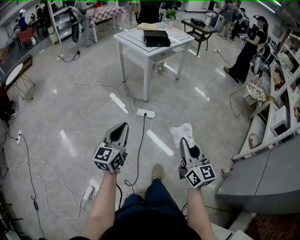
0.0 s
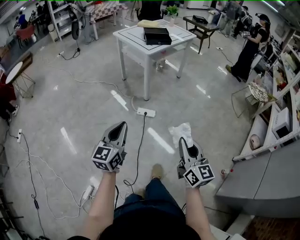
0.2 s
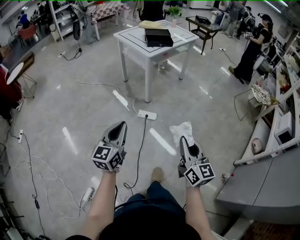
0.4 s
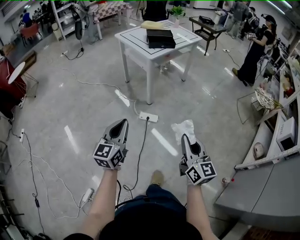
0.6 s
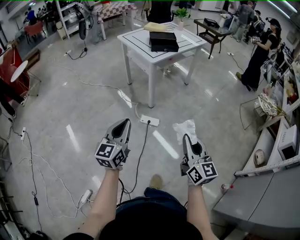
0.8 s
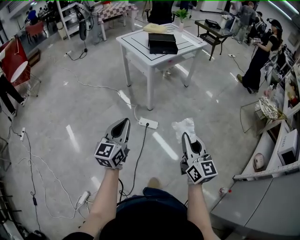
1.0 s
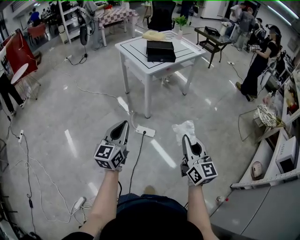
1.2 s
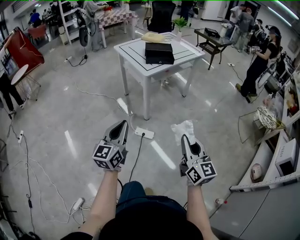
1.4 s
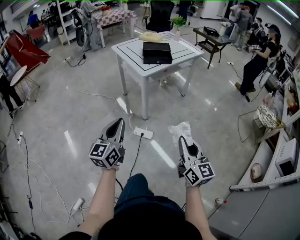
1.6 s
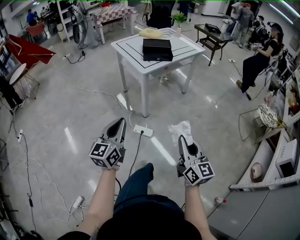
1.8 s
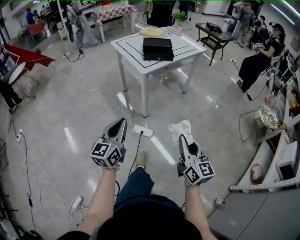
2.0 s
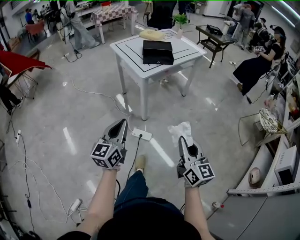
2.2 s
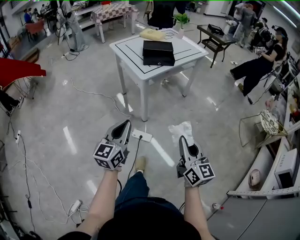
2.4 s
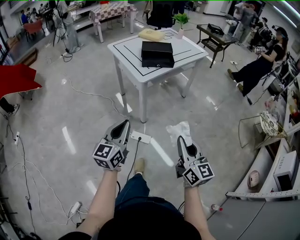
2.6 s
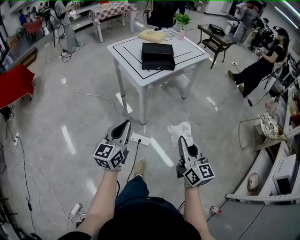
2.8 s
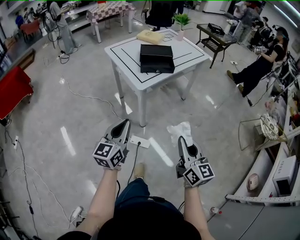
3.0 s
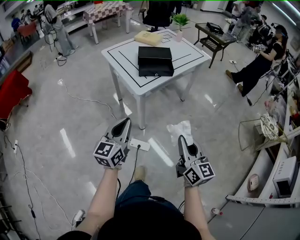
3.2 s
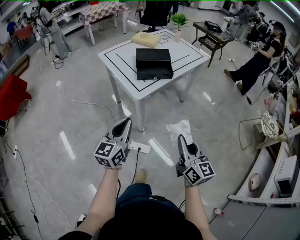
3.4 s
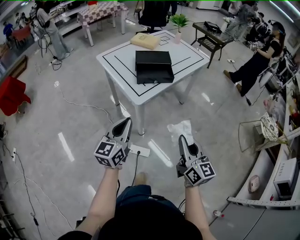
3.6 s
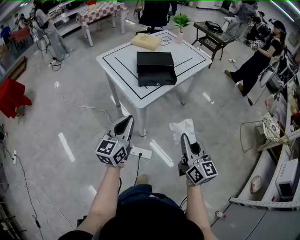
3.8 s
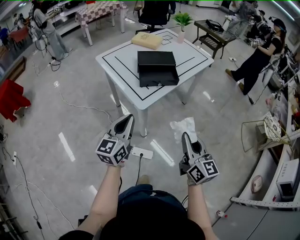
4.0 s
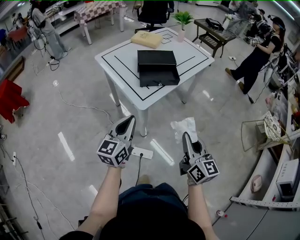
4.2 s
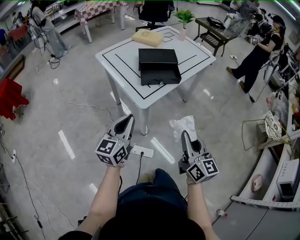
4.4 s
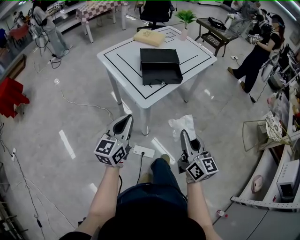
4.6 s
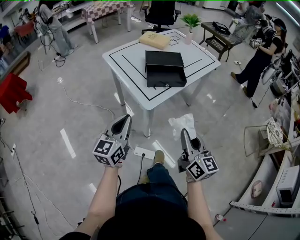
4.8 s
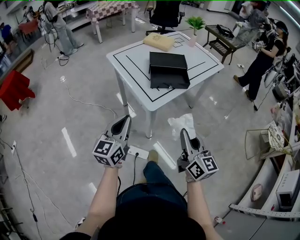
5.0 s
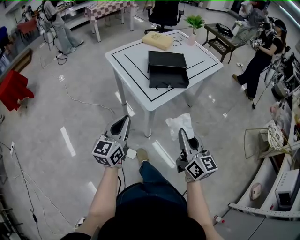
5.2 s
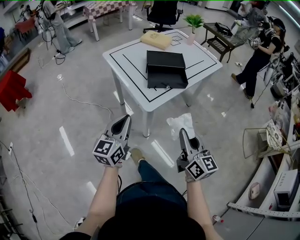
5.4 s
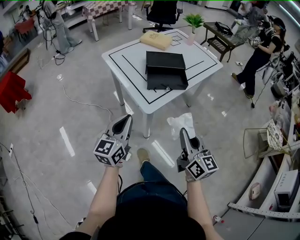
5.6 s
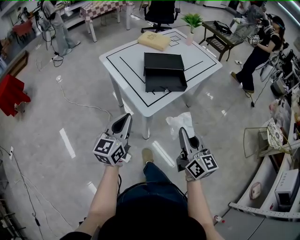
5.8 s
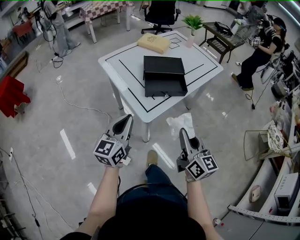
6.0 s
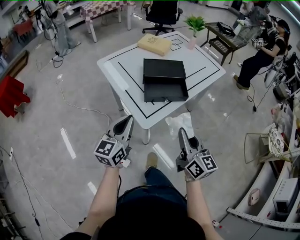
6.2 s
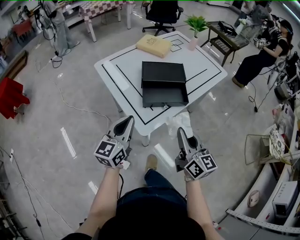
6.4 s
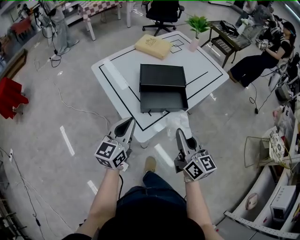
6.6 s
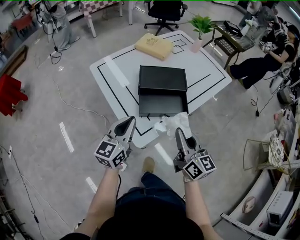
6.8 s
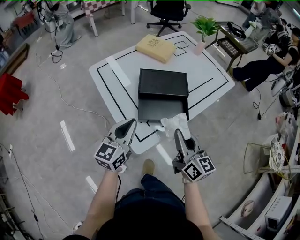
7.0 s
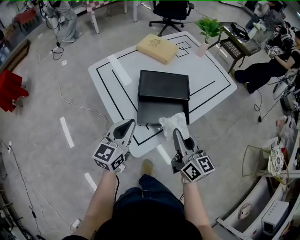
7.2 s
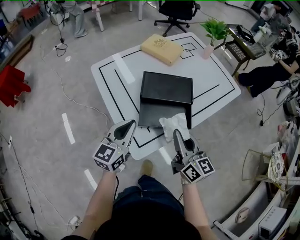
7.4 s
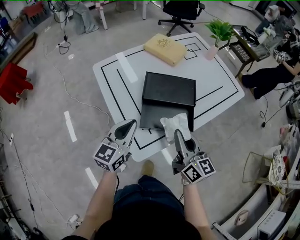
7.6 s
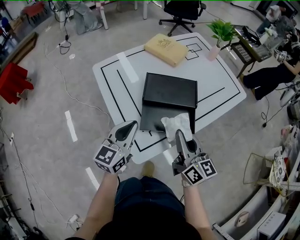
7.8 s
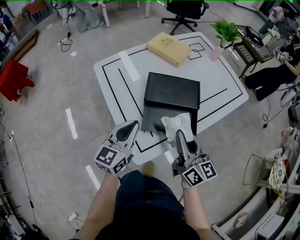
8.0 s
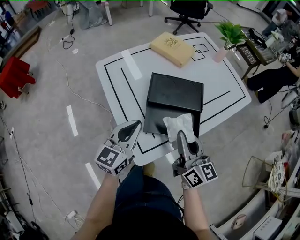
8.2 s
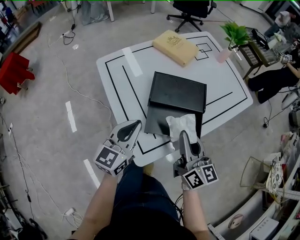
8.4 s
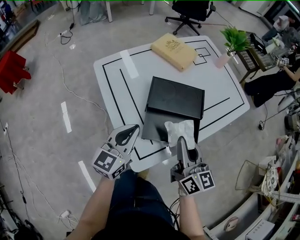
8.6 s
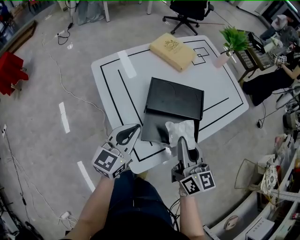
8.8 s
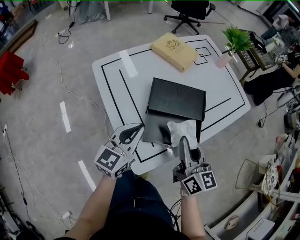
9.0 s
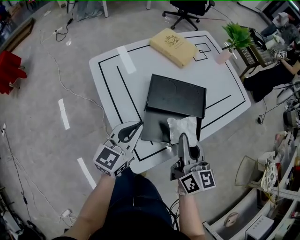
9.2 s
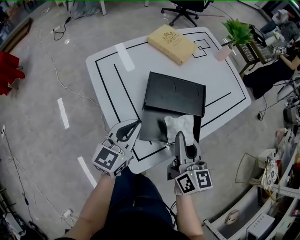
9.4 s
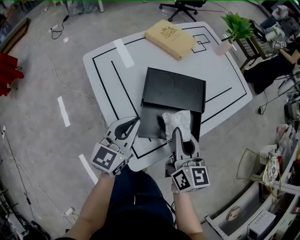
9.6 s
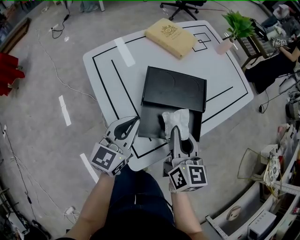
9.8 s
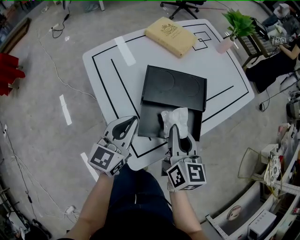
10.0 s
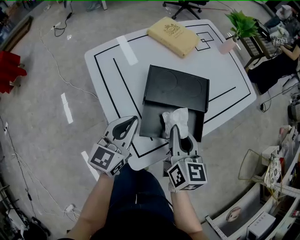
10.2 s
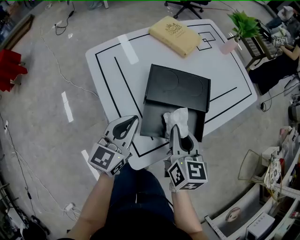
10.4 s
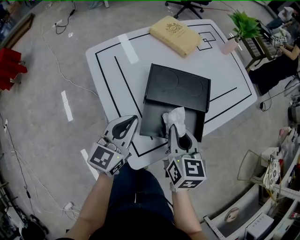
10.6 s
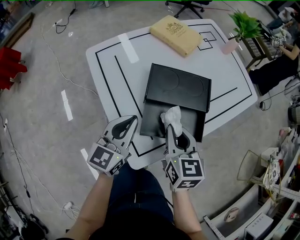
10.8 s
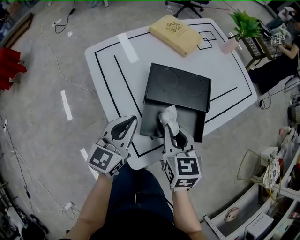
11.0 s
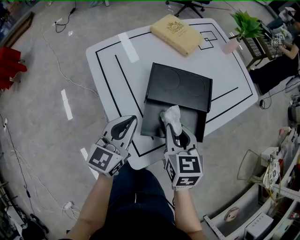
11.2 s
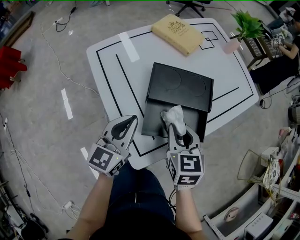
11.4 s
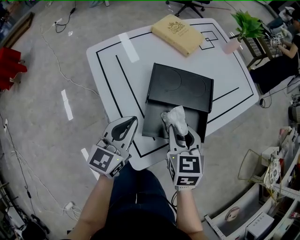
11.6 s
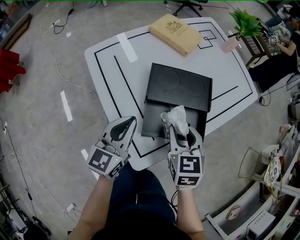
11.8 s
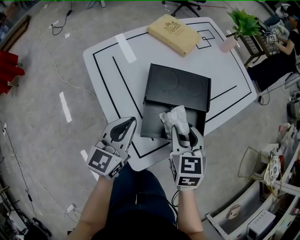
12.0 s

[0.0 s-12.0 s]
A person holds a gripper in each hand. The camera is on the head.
0.0 to 1.6 s: Both grippers travel together forward, about 30 cm.
1.6 to 3.0 s: Both grippers move forward, roughly 20 cm.
3.0 to 4.4 s: Both grippers travel together forward, some 20 cm.
4.4 to 6.0 s: Both grippers travel together forward, about 10 cm.
6.0 to 7.6 s: Both grippers travel together forward, roughly 25 cm.
7.6 to 9.0 s: The right gripper changes place by some 5 cm.
9.0 to 10.4 s: The right gripper is displaced downward by approximately 5 cm.
10.4 to 12.0 s: The right gripper changes its angle by approximately 20 degrees, and opens up.

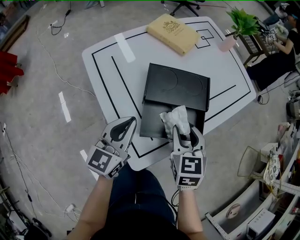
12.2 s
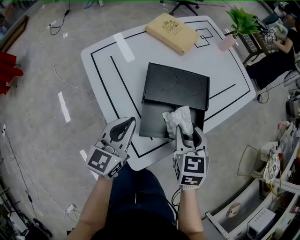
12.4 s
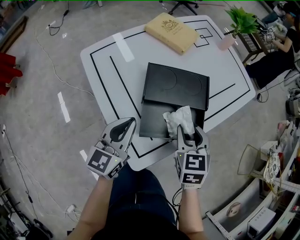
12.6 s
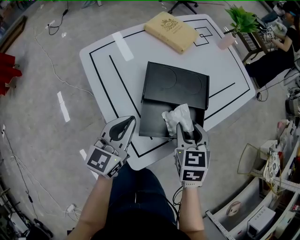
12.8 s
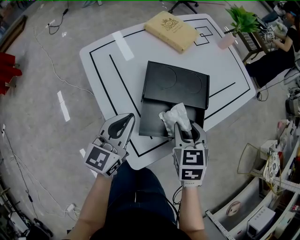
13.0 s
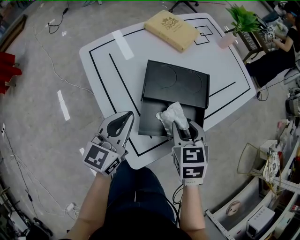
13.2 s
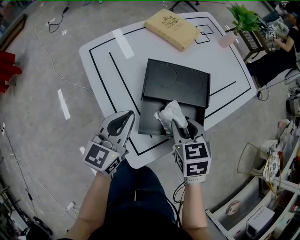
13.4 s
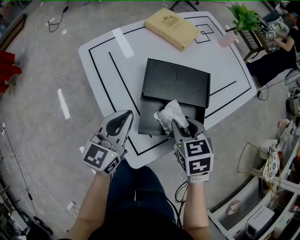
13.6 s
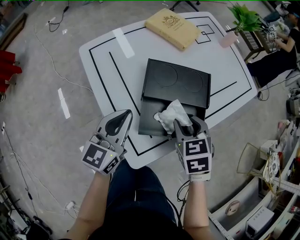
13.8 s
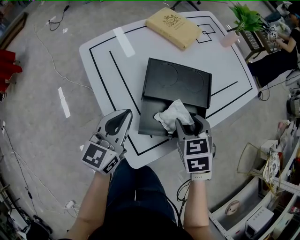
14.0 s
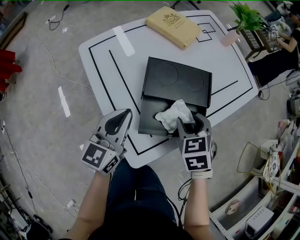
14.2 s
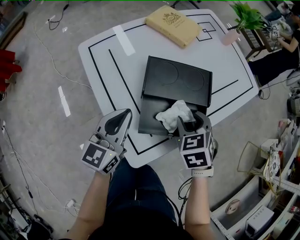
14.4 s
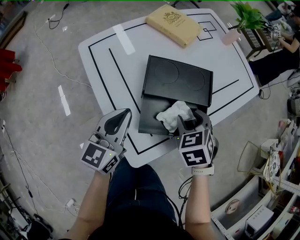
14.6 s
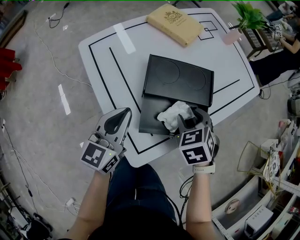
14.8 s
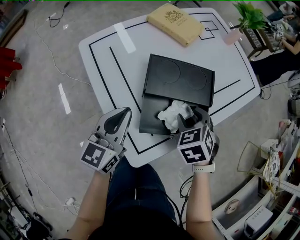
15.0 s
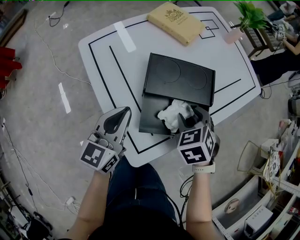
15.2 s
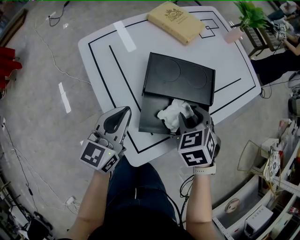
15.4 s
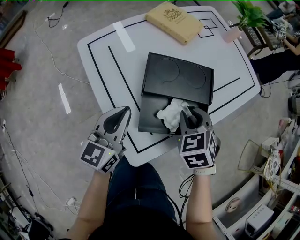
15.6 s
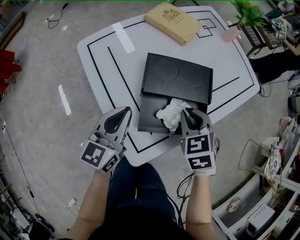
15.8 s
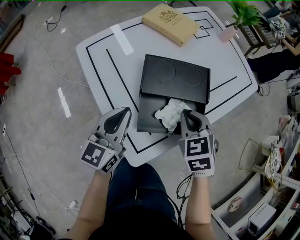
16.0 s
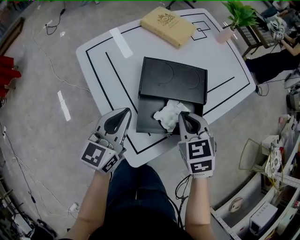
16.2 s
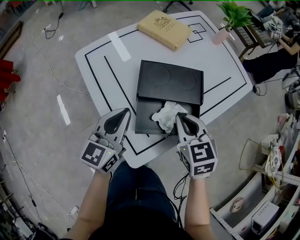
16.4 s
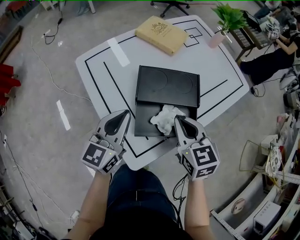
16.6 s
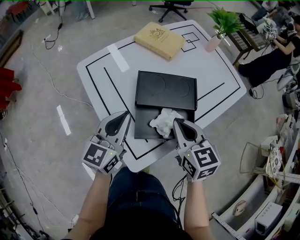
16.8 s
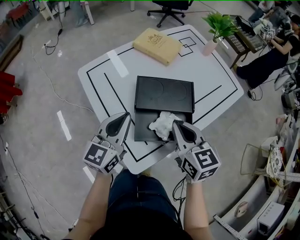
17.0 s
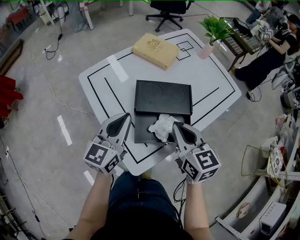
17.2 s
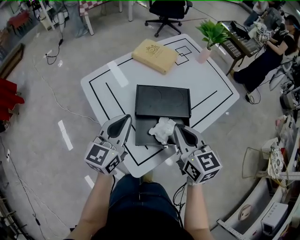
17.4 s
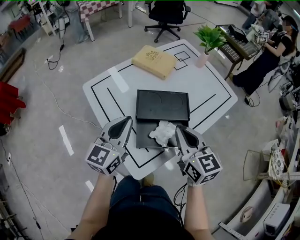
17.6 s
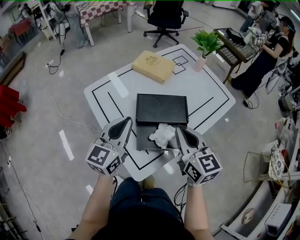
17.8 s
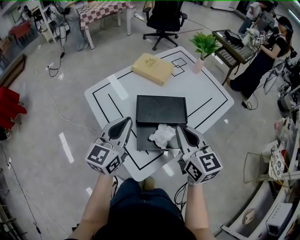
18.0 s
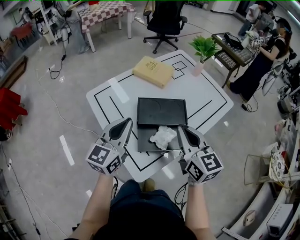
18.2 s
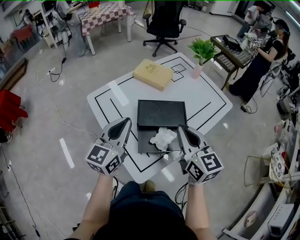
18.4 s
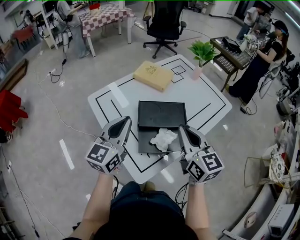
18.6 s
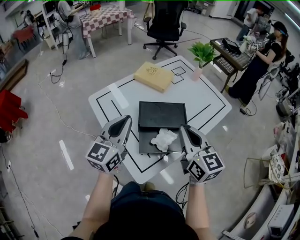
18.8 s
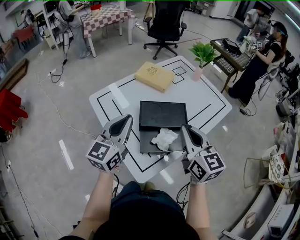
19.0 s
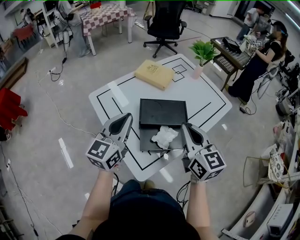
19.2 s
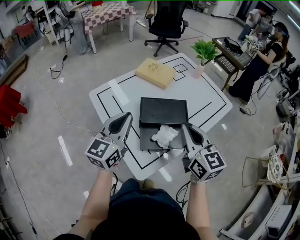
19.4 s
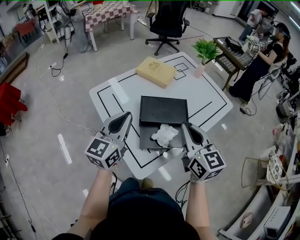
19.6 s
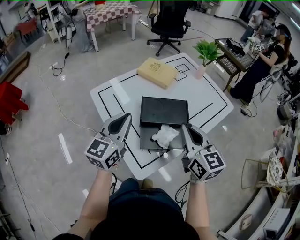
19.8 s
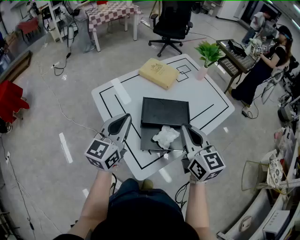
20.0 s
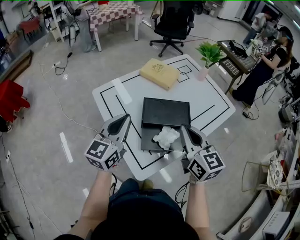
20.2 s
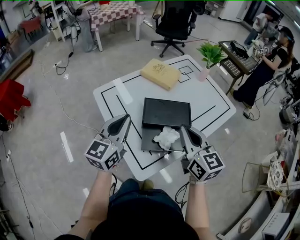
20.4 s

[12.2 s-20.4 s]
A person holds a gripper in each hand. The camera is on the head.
12.2 to 13.8 s: The grippers make only small movements.
13.8 to 15.4 s: The grippers move only a little.
15.4 to 17.2 s: The left gripper moves upward, some 10 cm, while the right gripper heads upward, covering about 15 cm, tilts its fingers roughly 30 degrees upward, and closes up.
17.2 to 18.8 s: The two grippers go some 10 cm upward.
18.8 to 20.4 s: The grippers move only a little.

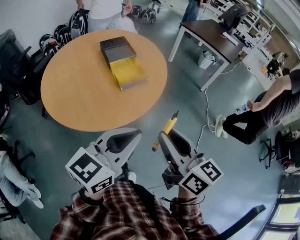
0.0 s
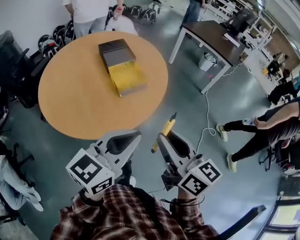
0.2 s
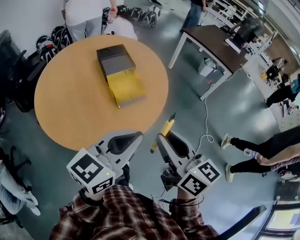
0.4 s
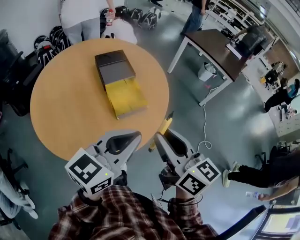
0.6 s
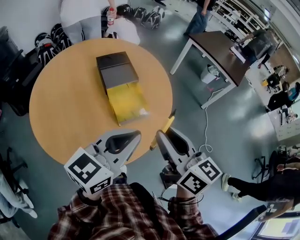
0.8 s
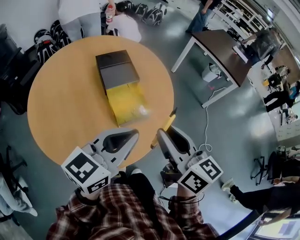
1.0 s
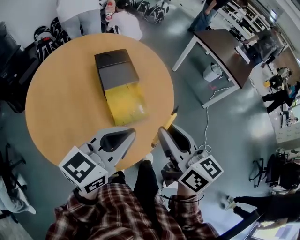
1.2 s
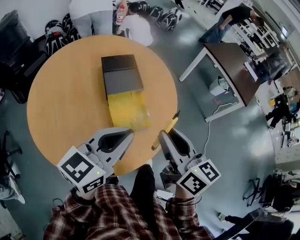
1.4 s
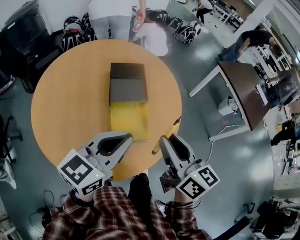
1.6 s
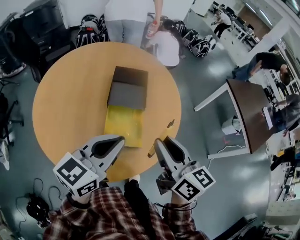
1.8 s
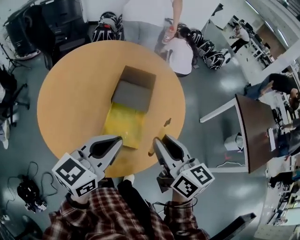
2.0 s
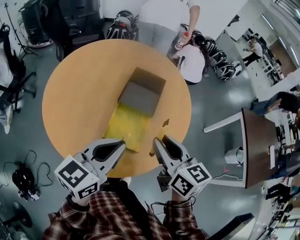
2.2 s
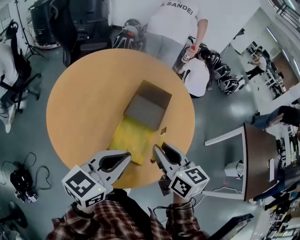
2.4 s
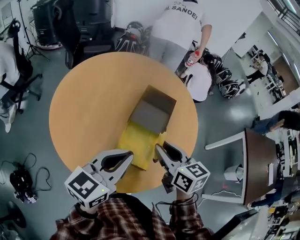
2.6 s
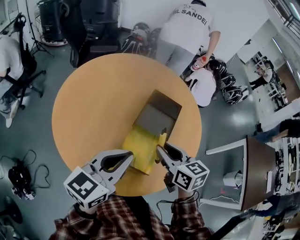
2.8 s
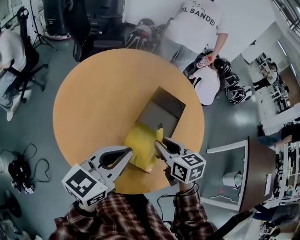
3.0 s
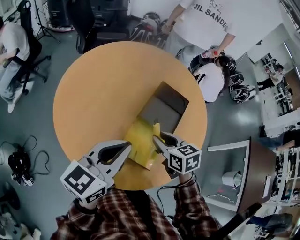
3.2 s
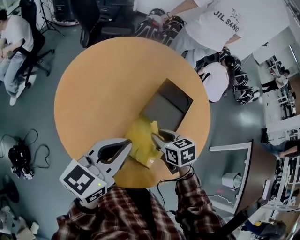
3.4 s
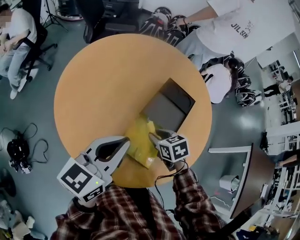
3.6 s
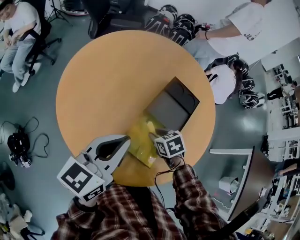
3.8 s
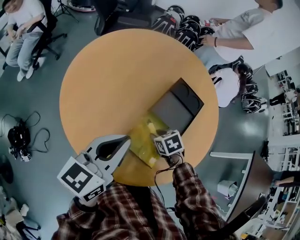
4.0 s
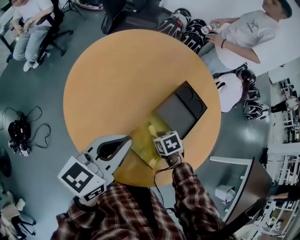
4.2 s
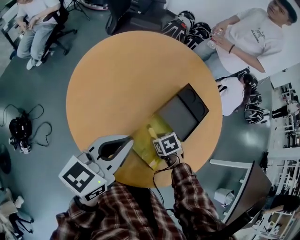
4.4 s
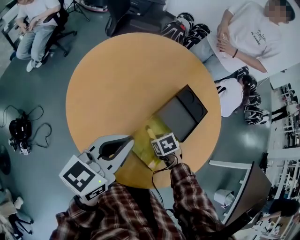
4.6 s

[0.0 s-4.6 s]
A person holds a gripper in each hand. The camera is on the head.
0.0 to 1.6 s: The grippers both shift forward by some 40 cm.
1.6 to 3.0 s: The left gripper ends up about 5 cm from where it was, and rotates about 40 degrees, while the right gripper changes place by roughly 20 cm, and changes its angle by approximately 50 degrees.
3.0 to 4.6 s: The left gripper moves about 5 cm. The right gripper travels downward by some 20 cm, and tips its fingers downward by roughly 40 degrees.
